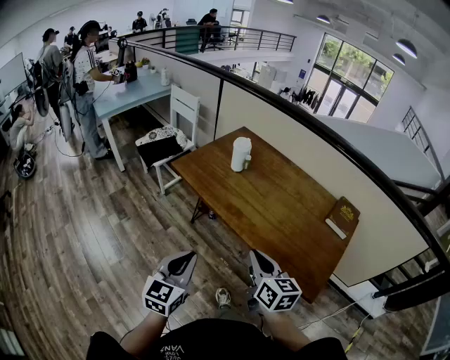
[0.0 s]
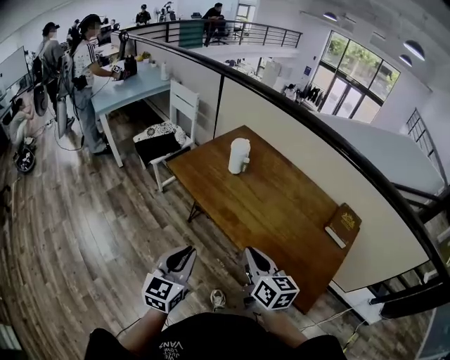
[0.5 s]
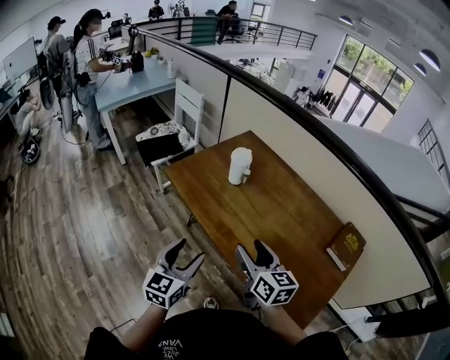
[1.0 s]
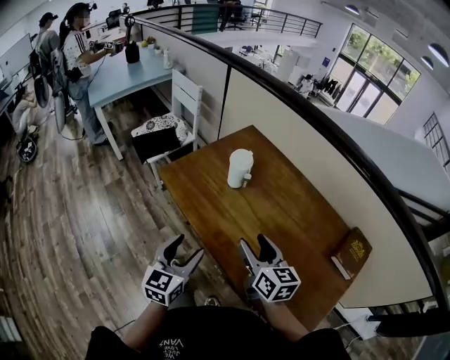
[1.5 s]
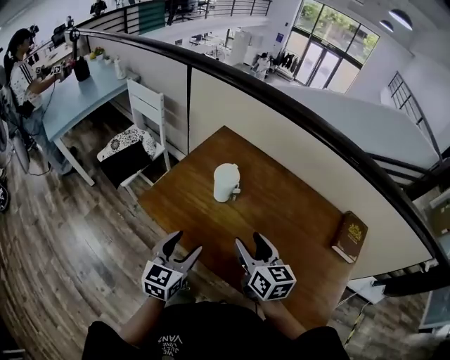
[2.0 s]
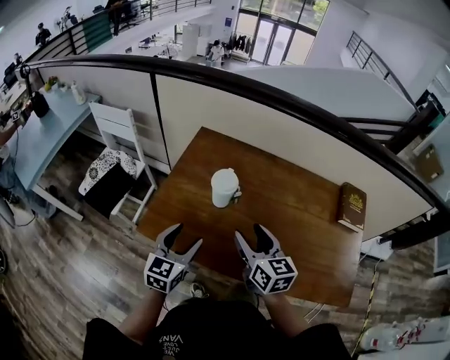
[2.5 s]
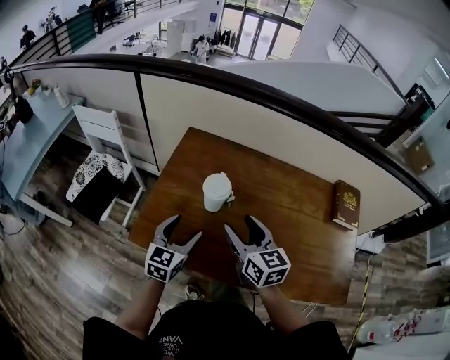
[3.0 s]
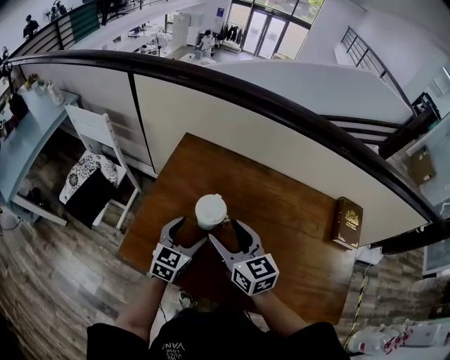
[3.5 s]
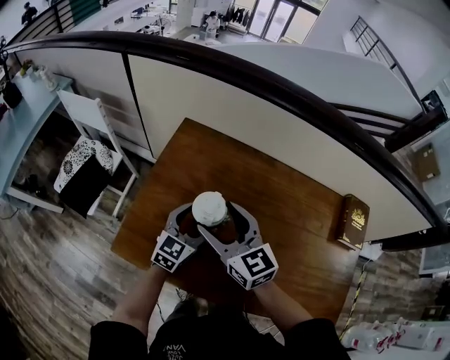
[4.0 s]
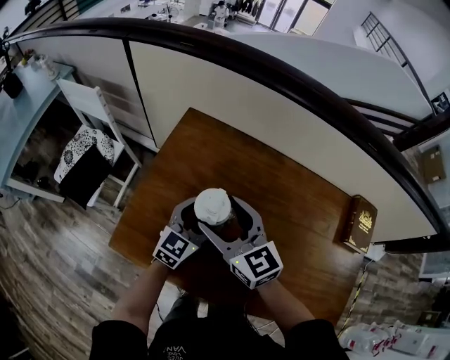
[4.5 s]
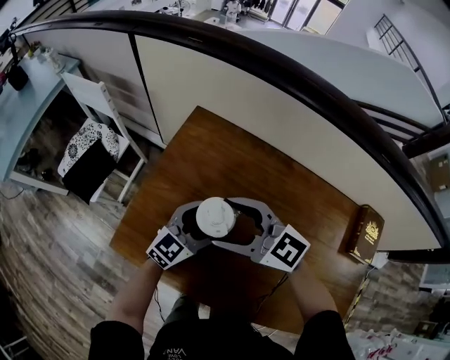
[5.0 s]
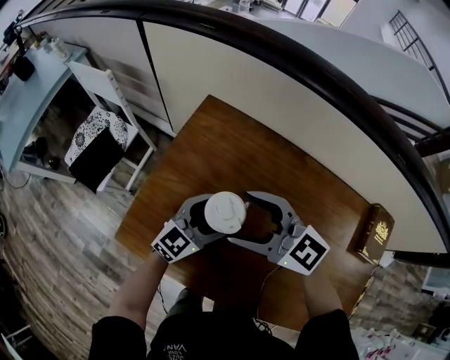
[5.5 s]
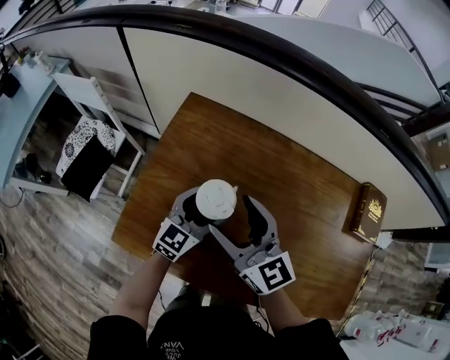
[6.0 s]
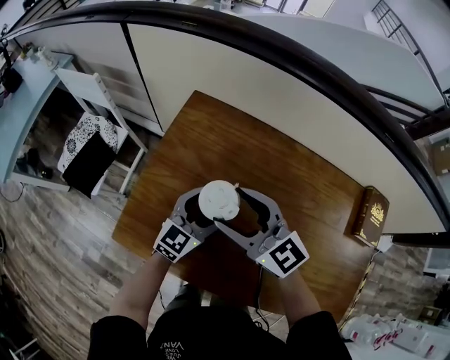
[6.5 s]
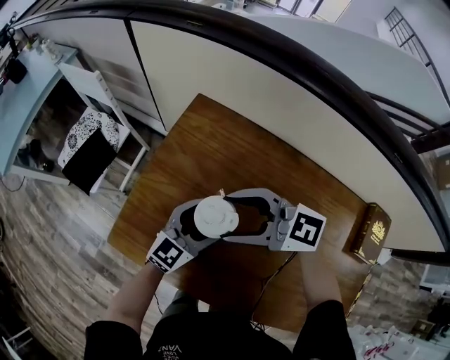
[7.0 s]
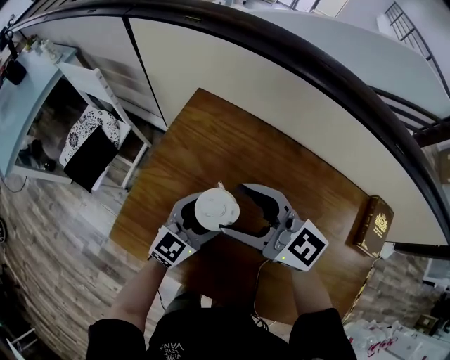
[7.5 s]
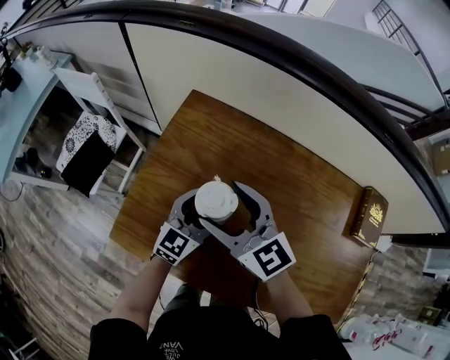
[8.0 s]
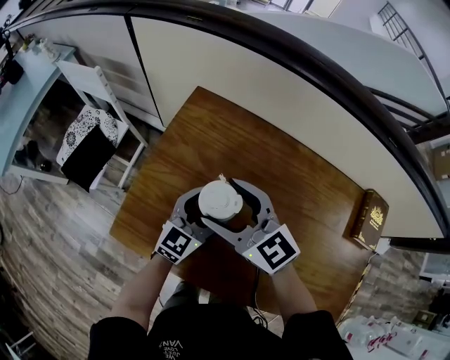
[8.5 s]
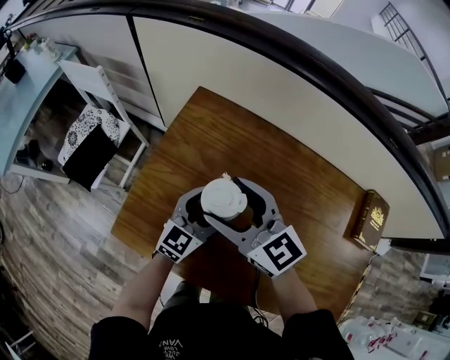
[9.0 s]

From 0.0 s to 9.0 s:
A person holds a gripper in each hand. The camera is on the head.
From 0.0 s to 2.0 s: The two grippers go roughly 30 cm forward. The right gripper opens up. The left gripper opens.
From 2.0 s to 4.5 s: The right gripper goes some 20 cm forward and to the left. The left gripper shifts some 25 cm forward, and rotates some 30 degrees.
From 4.5 s to 7.0 s: The right gripper swivels roughly 50 degrees.
From 7.0 s to 9.0 s: The right gripper changes its angle by about 40 degrees.

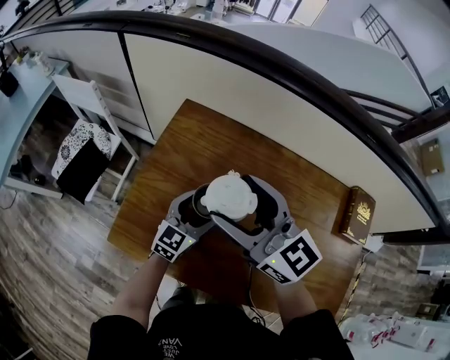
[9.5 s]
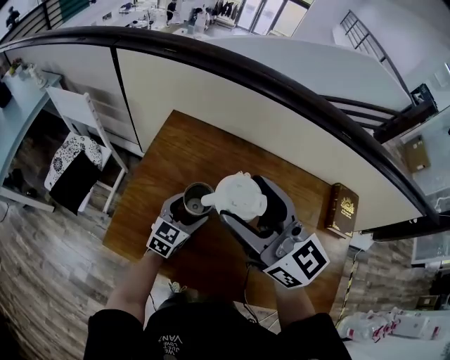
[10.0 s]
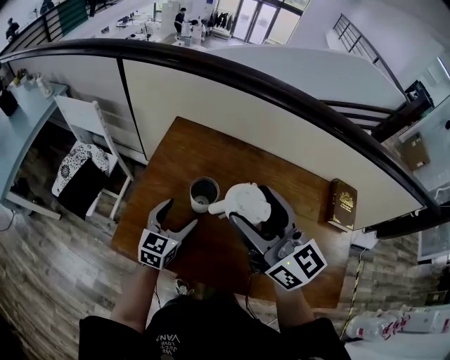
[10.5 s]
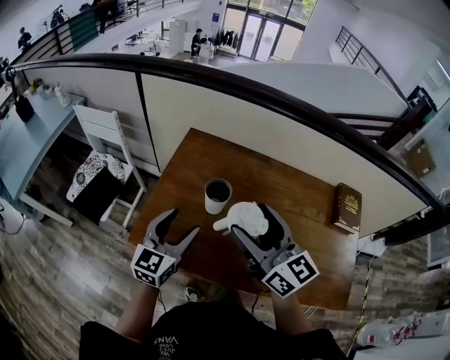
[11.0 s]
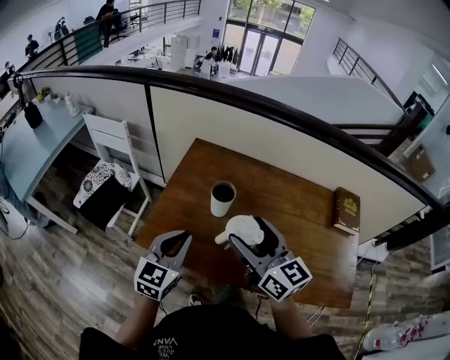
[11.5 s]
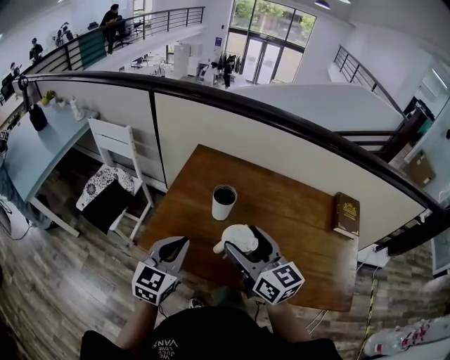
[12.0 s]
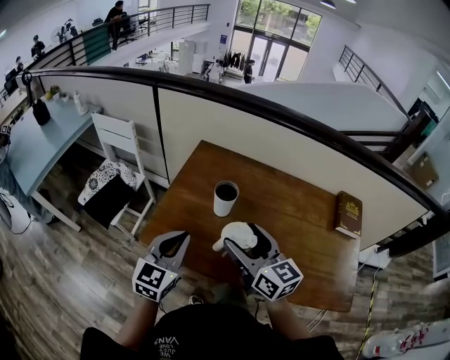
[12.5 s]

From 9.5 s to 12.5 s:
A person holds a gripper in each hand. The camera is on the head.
From 9.5 s to 11.0 s: The left gripper goes about 20 cm upward, backward and to the left. The right gripper goes some 10 cm backward.
From 11.0 s to 12.5 s: The right gripper is displaced downward by about 5 cm; the left gripper heads backward, covering approximately 10 cm, and closes up.

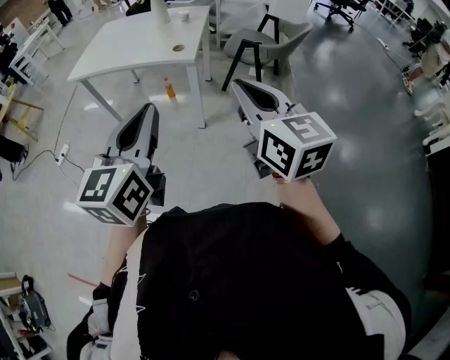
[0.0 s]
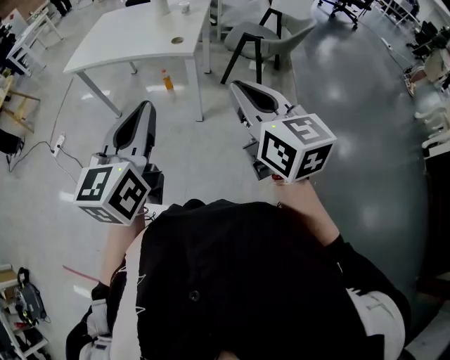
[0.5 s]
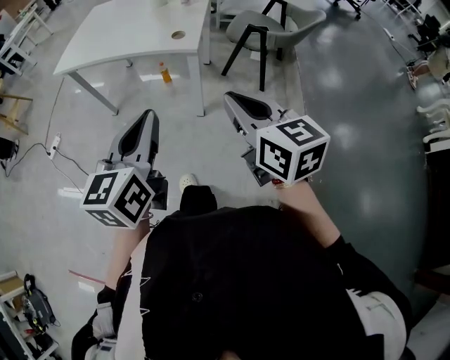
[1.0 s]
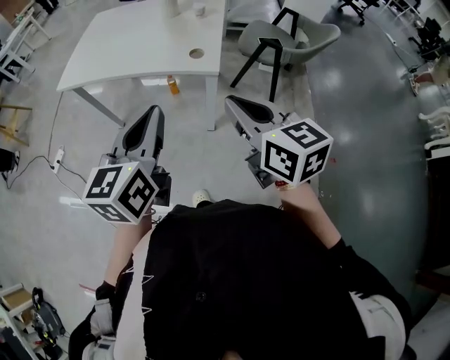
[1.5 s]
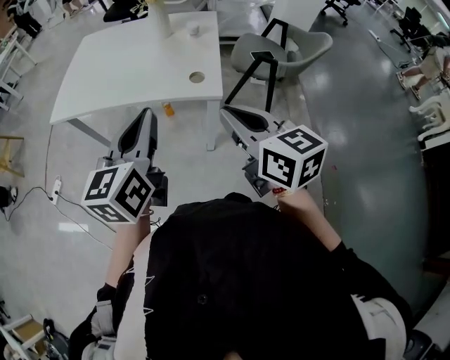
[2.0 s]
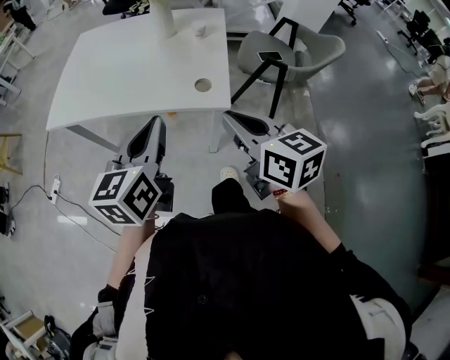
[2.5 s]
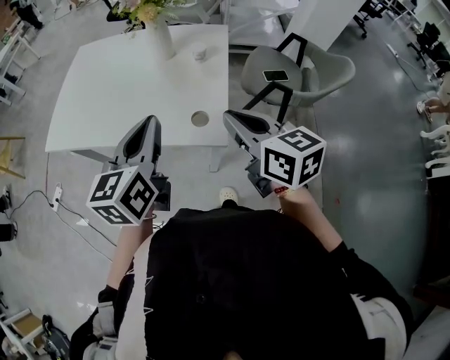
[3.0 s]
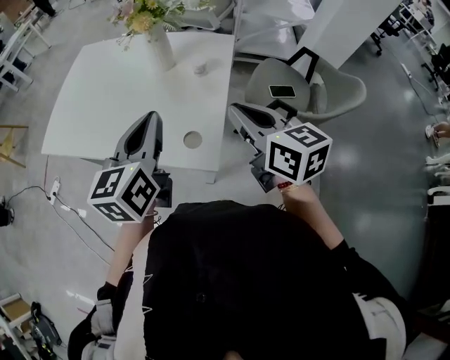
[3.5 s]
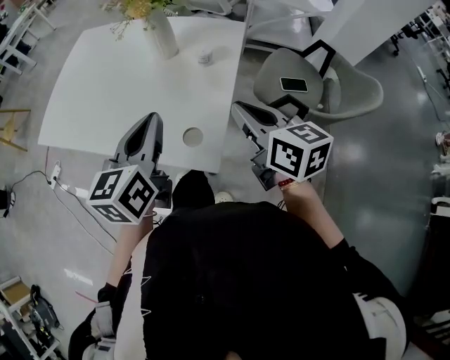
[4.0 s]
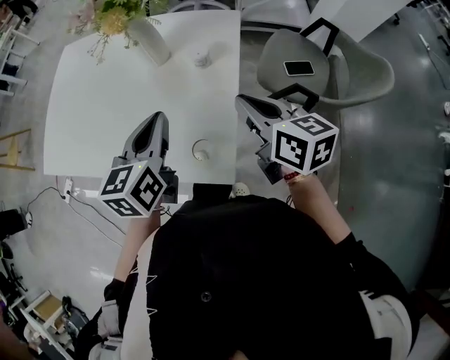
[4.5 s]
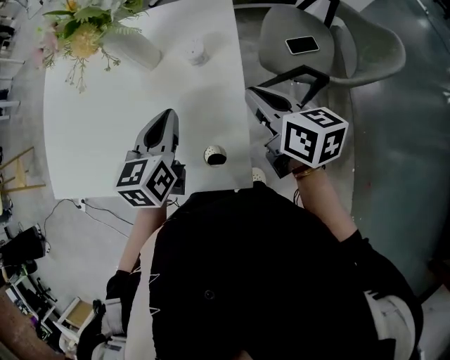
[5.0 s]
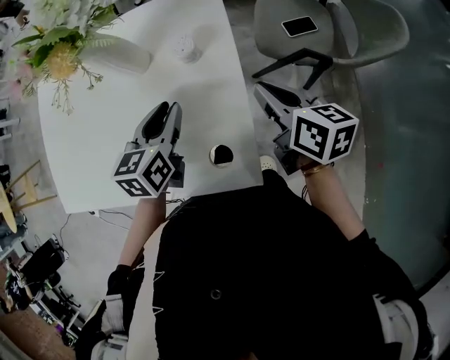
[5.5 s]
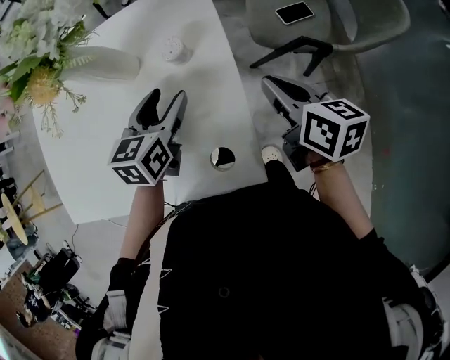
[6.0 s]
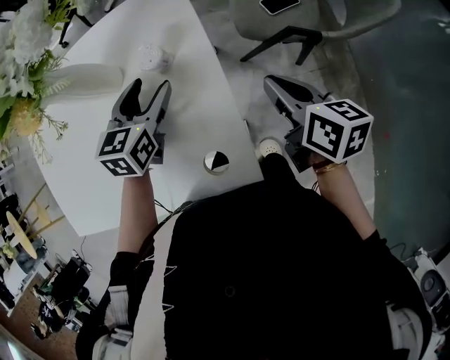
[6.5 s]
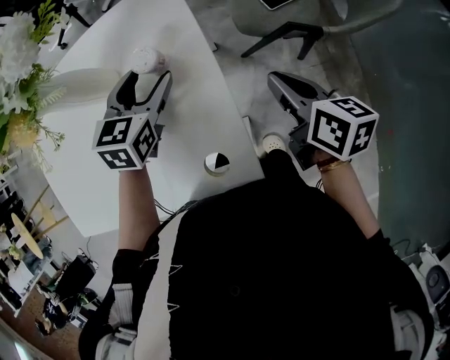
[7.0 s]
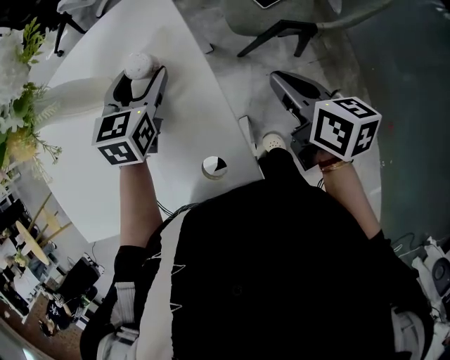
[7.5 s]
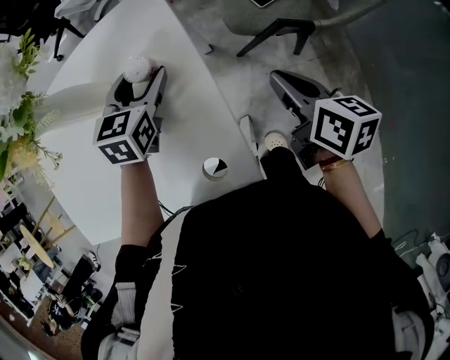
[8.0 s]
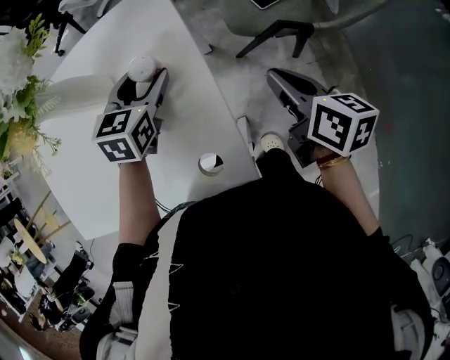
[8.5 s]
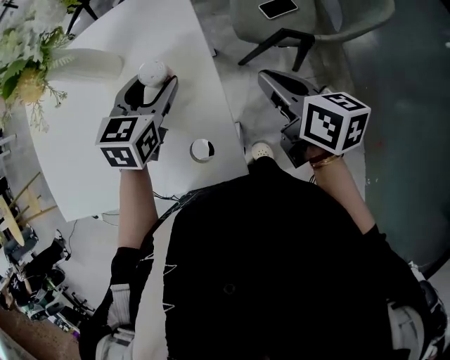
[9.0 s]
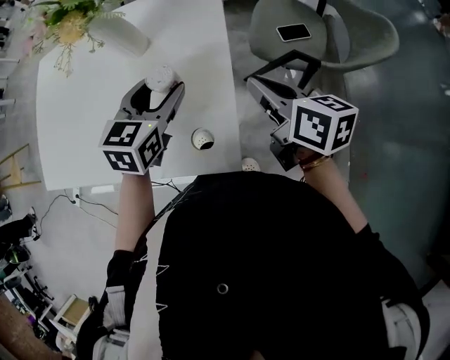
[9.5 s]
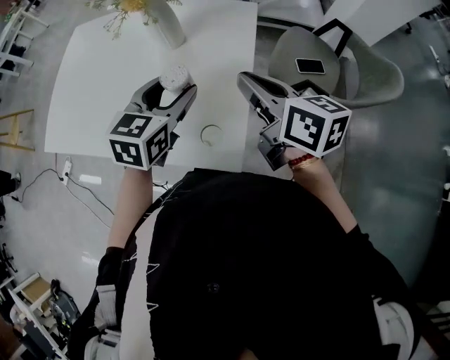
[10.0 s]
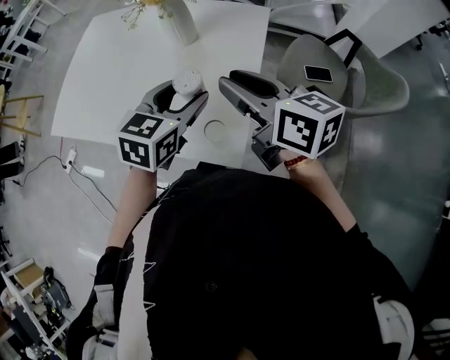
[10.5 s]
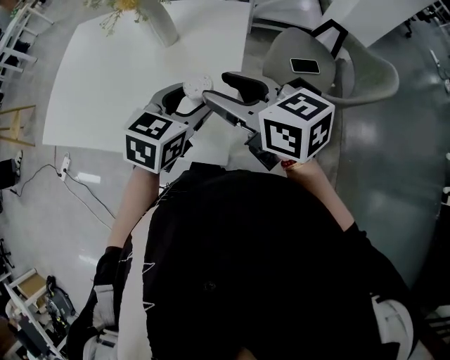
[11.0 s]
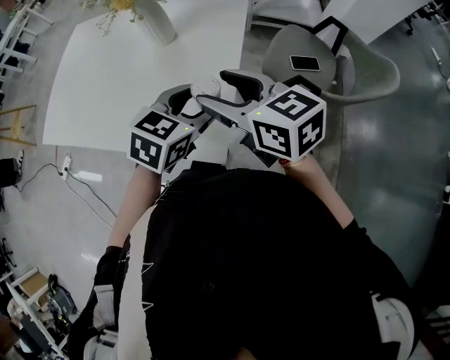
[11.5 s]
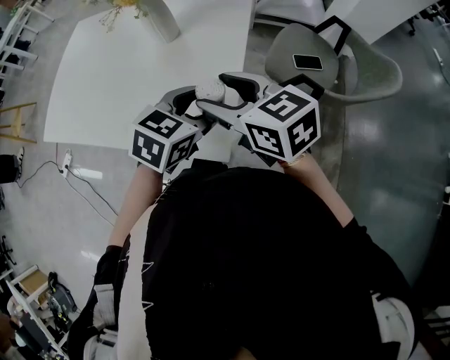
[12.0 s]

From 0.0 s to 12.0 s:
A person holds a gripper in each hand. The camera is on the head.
From 0.0 s to 2.0 s: The left gripper travels forward by approximately 30 cm. The right gripper goes some 30 cm forward and to the left.
From 2.0 s to 4.0 s: The grippers both shift forward and to the right by about 30 cm.
From 4.0 s to 6.0 s: The right gripper goes approximately 15 cm downward, forward and to the right, and swivels some 30 degrees. Meanwhile the left gripper goes about 25 cm forward and downward, rotates some 40 degrees, and opens its fingers.
From 6.0 s to 8.0 s: The right gripper travels to the right by some 5 cm. The left gripper moves forward, approximately 10 cm.
From 8.0 s to 10.0 s: The right gripper is displaced to the left and upward by about 20 cm, and rotates some 40 degrees, while the left gripper moves backward and upward, approximately 20 cm.
From 10.0 s to 12.0 s: The left gripper travels to the right and backward by approximately 10 cm; the right gripper changes place by roughly 5 cm, changes its angle by roughly 30 degrees, and opens up.

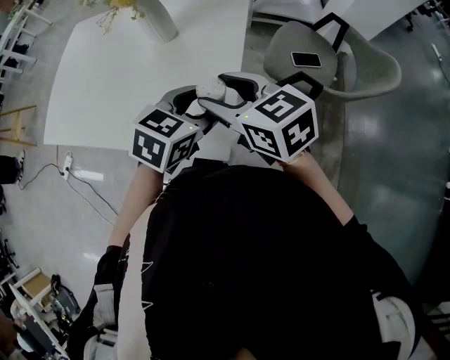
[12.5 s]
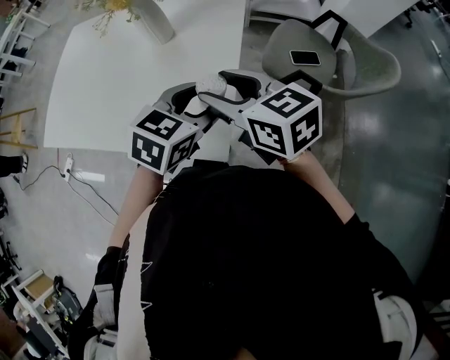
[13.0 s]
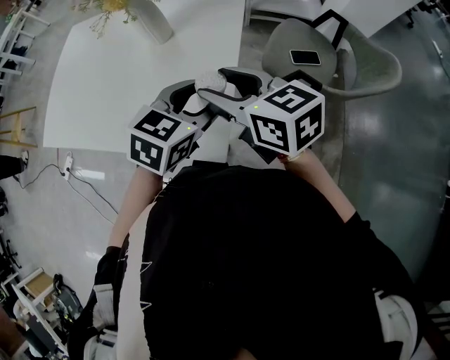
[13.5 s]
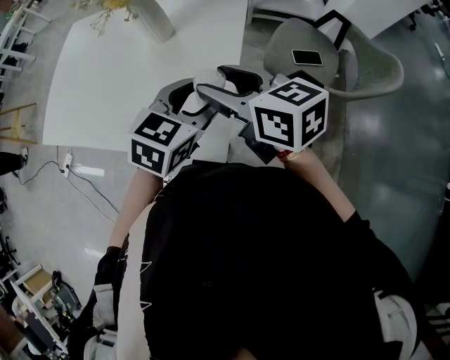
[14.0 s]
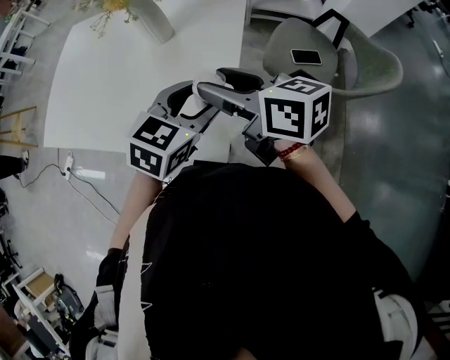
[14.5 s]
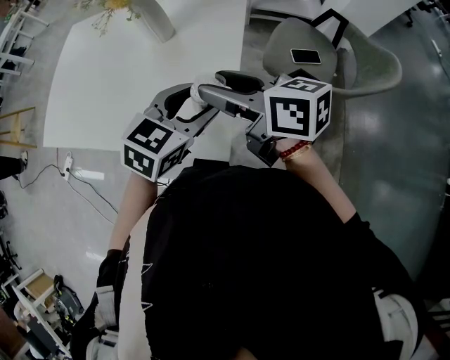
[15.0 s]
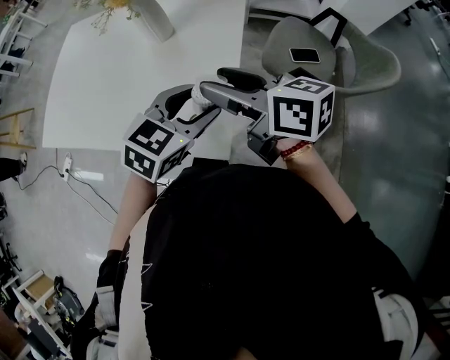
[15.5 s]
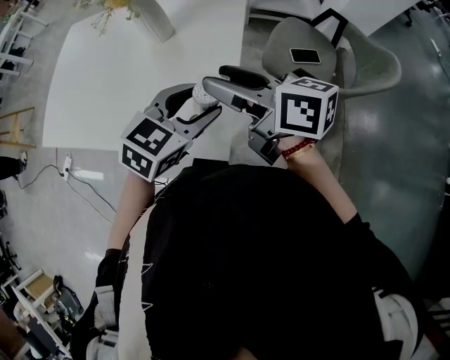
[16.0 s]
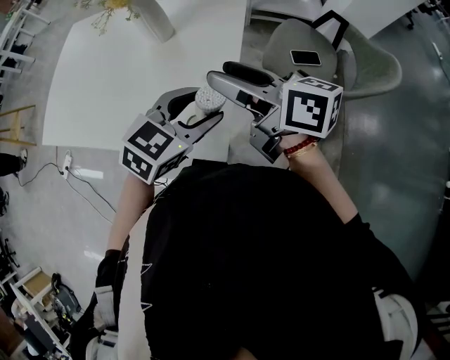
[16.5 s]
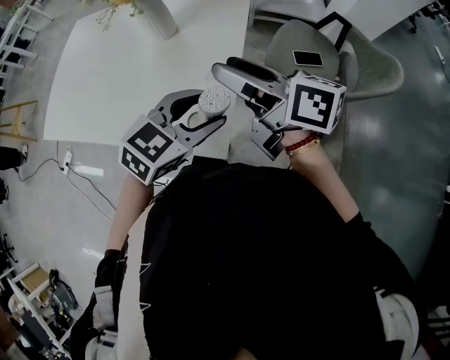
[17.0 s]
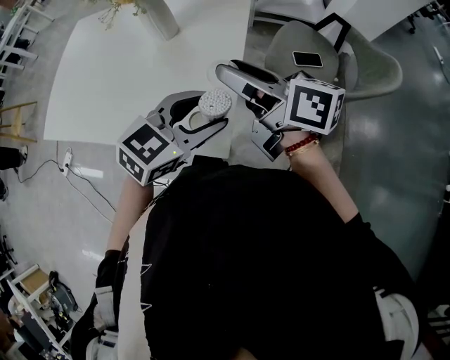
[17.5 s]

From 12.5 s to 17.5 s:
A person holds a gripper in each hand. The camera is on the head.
From 12.5 s to 15.0 s: The right gripper swivels roughly 30 degrees.
From 15.0 s to 17.5 s: The grippers move only a little.
